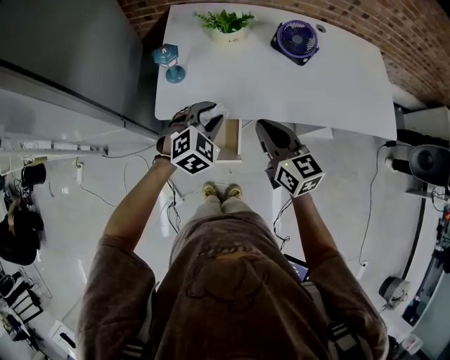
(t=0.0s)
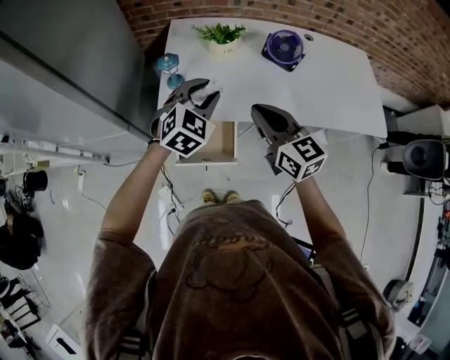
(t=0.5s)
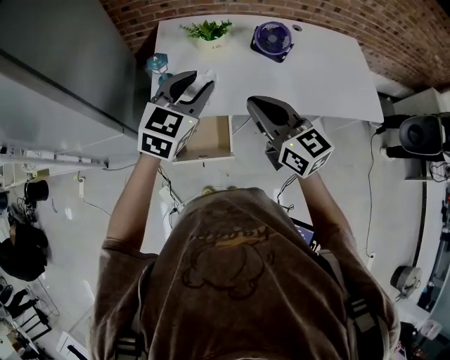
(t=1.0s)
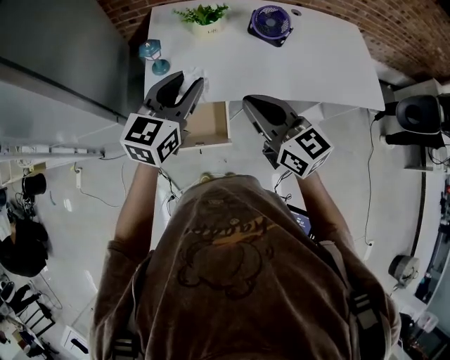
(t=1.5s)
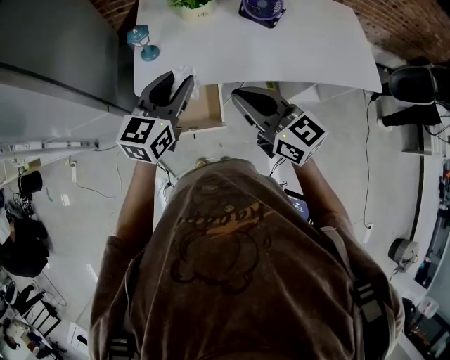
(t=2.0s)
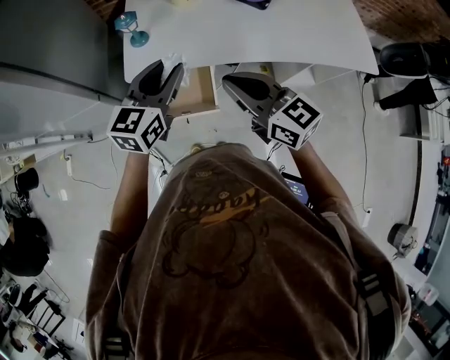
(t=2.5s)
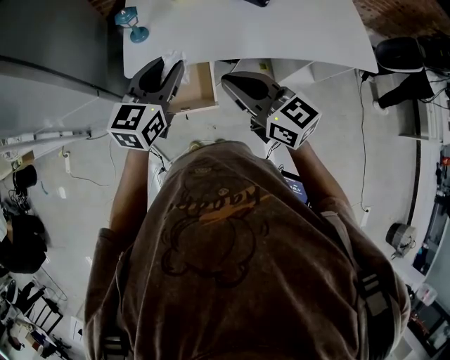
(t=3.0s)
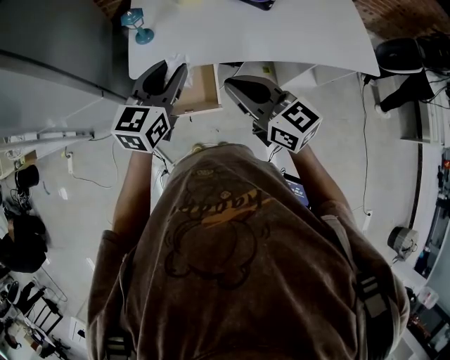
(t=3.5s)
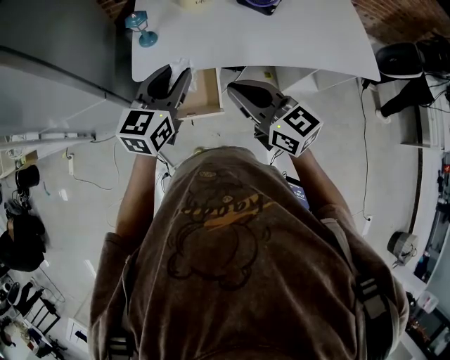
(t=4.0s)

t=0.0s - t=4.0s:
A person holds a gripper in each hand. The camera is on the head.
t=0.0s - t=2.0s: Both grippers move upward and backward, some 15 cm. The left gripper points its fingers approximately 30 degrees further upward.
t=2.0s - t=4.0s: The grippers make only small movements.

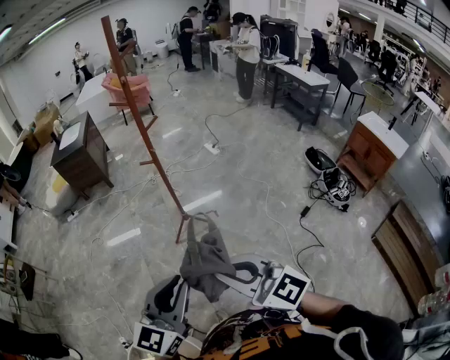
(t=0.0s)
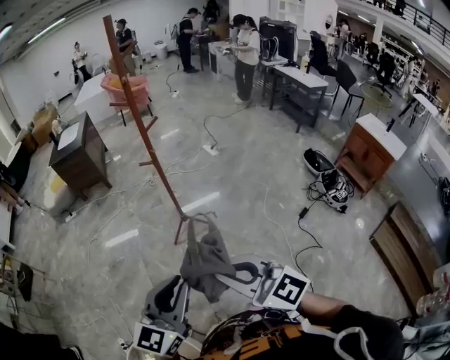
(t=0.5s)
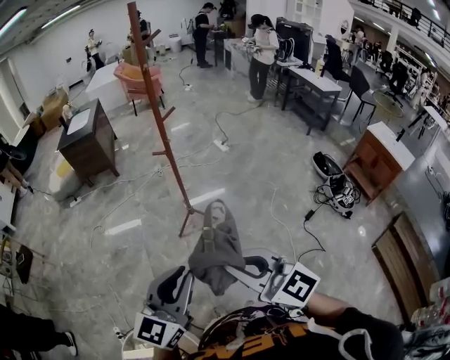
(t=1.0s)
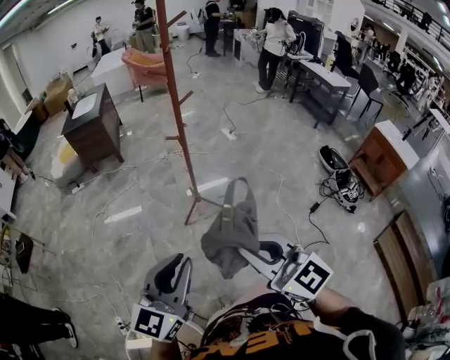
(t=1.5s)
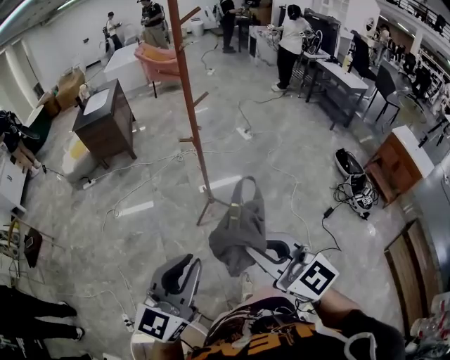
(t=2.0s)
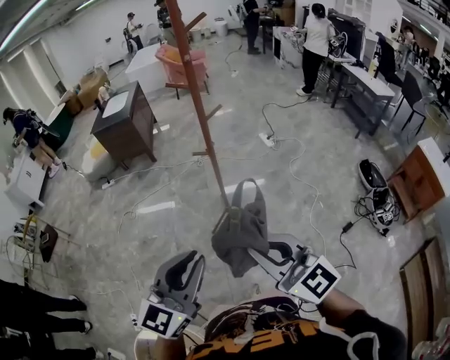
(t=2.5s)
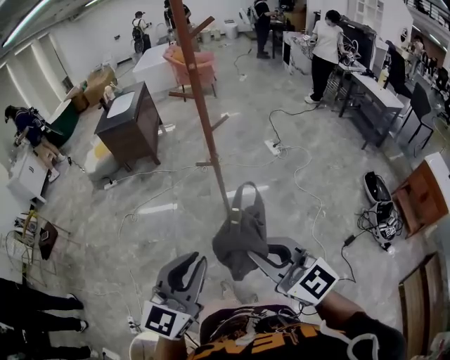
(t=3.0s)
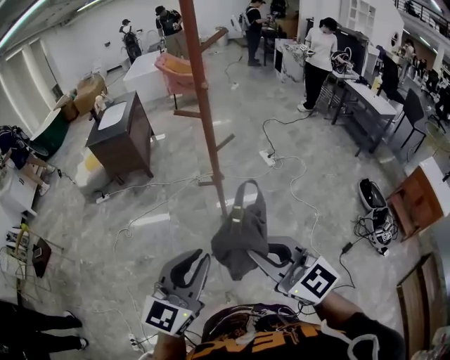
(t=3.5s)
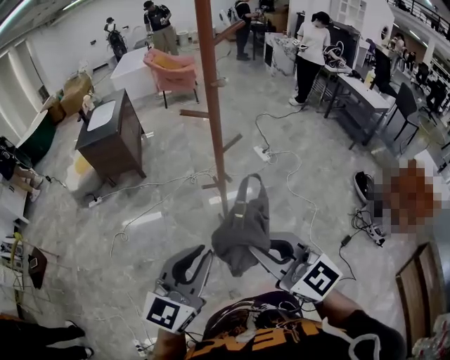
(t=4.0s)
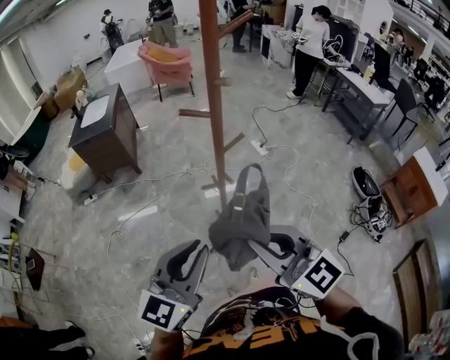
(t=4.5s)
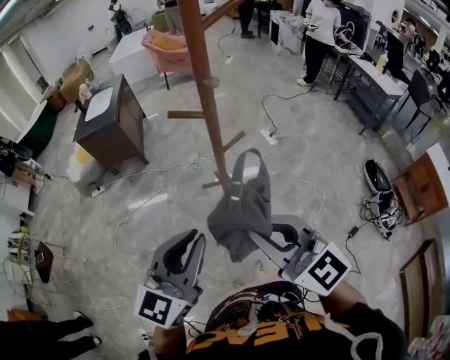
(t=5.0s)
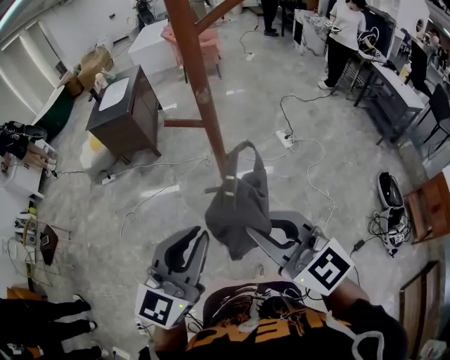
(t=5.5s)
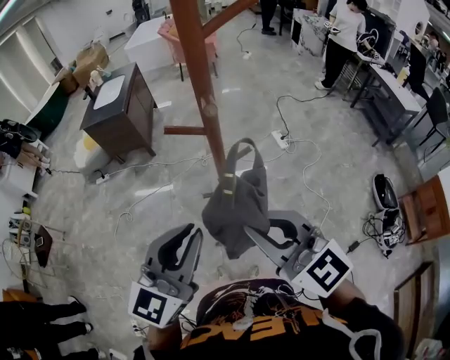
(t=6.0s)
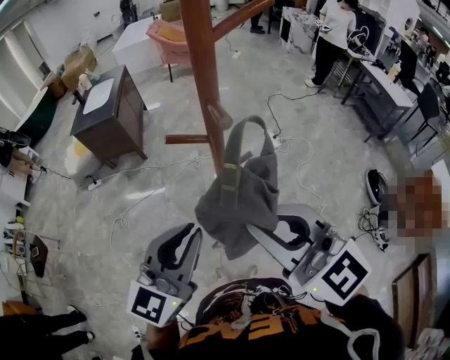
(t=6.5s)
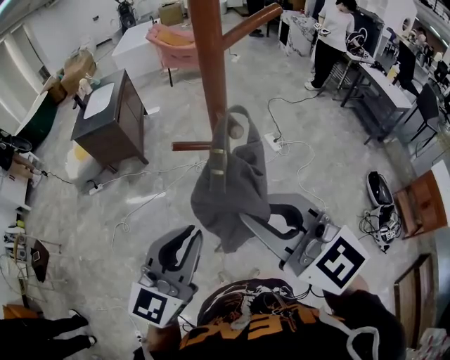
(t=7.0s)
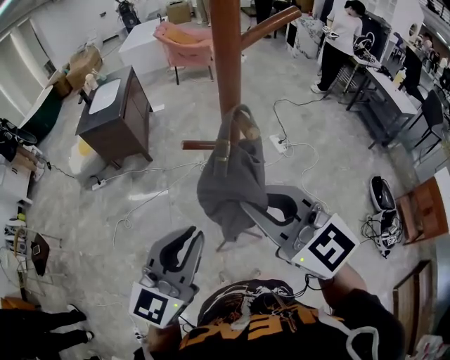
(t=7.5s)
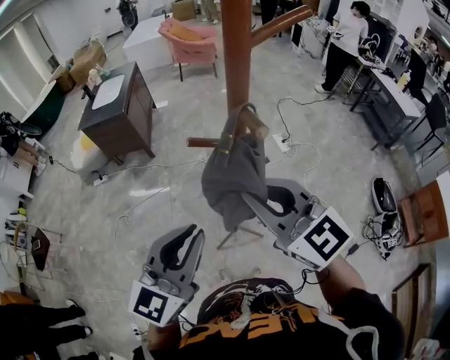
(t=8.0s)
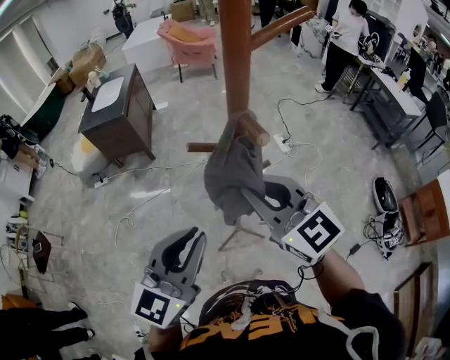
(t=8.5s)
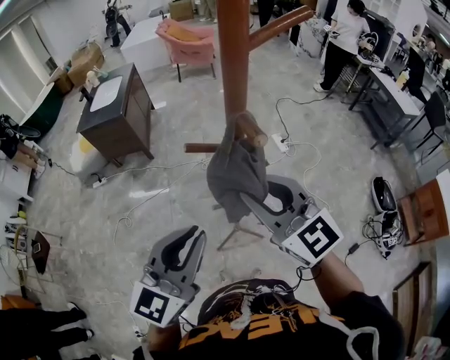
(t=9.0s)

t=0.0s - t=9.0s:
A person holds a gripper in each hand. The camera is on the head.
t=0.0s - t=2.0s: The left gripper shifts about 10 cm to the left and forward. The right gripper shifts roughly 10 cm forward and to the left.
t=2.0s - t=4.5s: Both grippers move forward, approximately 35 cm.
t=4.5s - t=7.0s: The right gripper is displaced forward and upward by some 20 cm. The left gripper goes about 15 cm forward.
t=7.0s - t=9.0s: The right gripper is displaced forward and downward by roughly 10 cm.

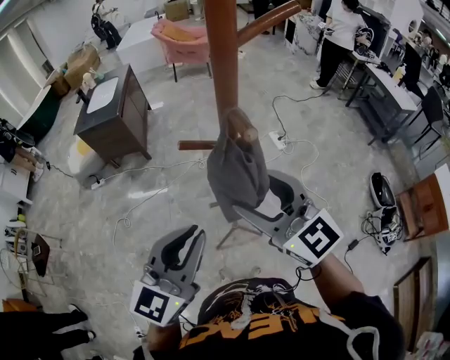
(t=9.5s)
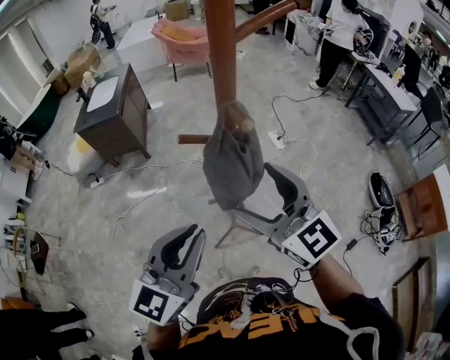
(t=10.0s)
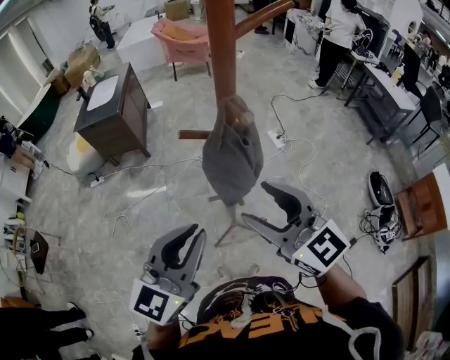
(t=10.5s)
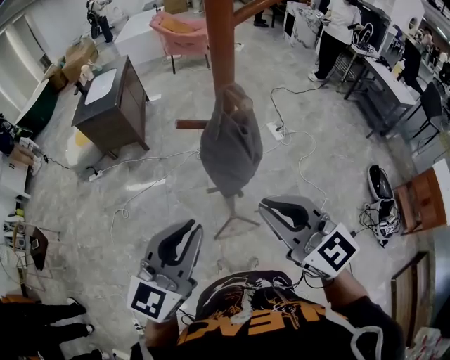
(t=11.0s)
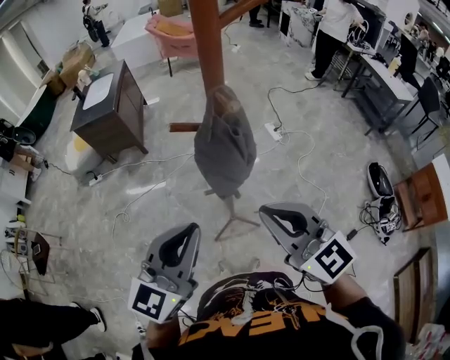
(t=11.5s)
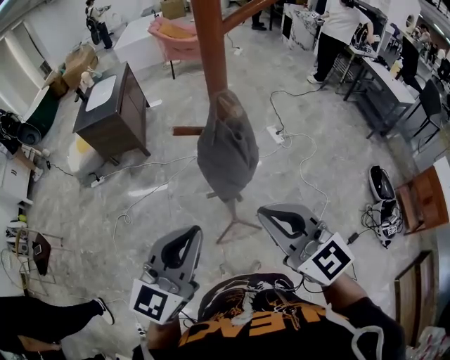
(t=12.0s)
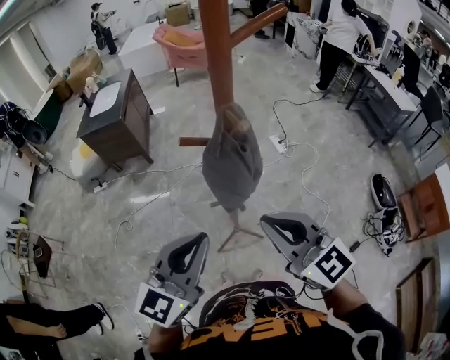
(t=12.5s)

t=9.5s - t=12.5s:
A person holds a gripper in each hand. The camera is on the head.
t=9.5s - t=11.0s: The right gripper moves backward, about 5 cm, and closes up.
t=11.0s - t=12.5s: Neither gripper changes place.

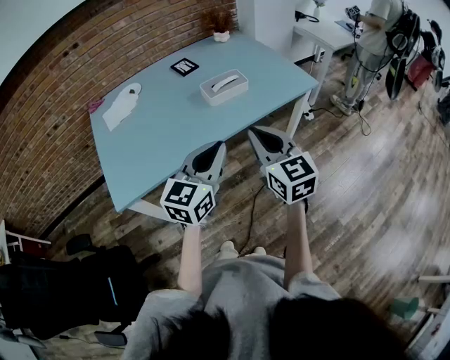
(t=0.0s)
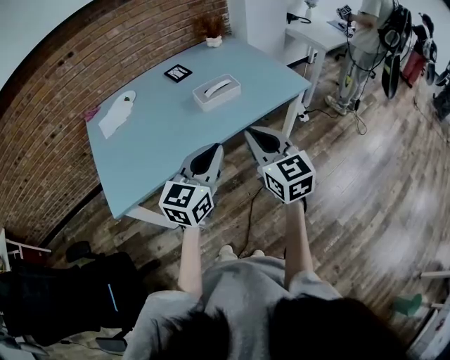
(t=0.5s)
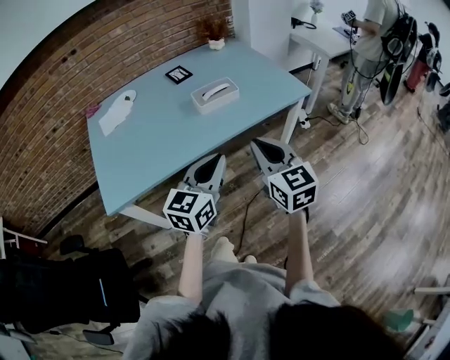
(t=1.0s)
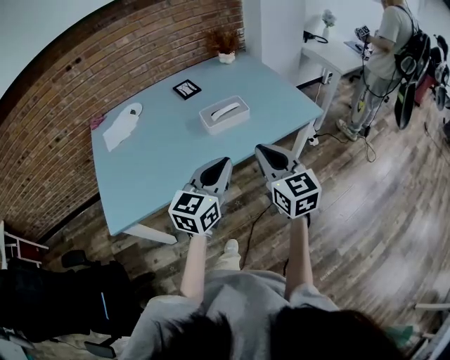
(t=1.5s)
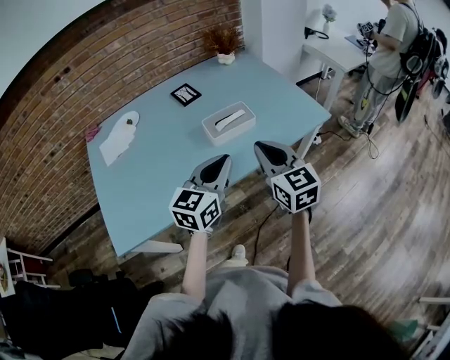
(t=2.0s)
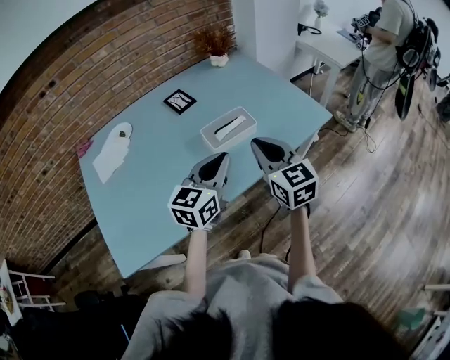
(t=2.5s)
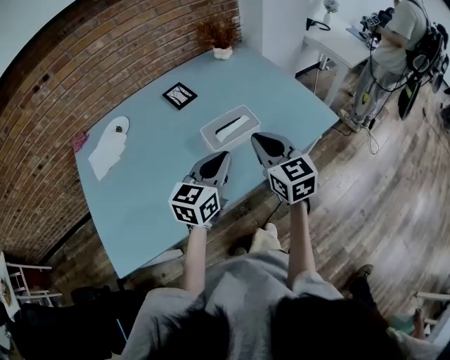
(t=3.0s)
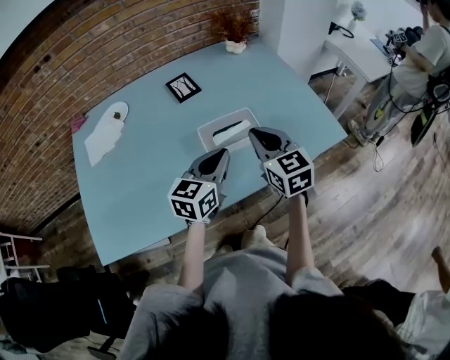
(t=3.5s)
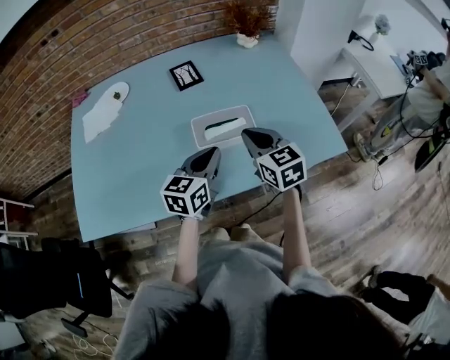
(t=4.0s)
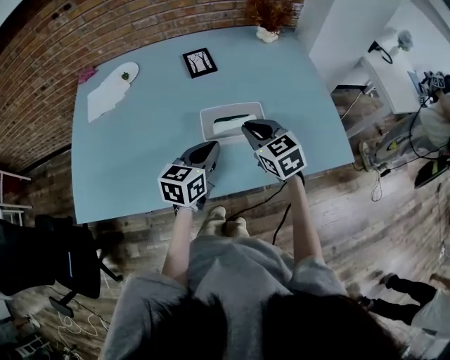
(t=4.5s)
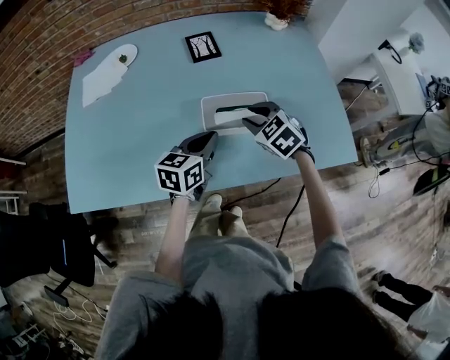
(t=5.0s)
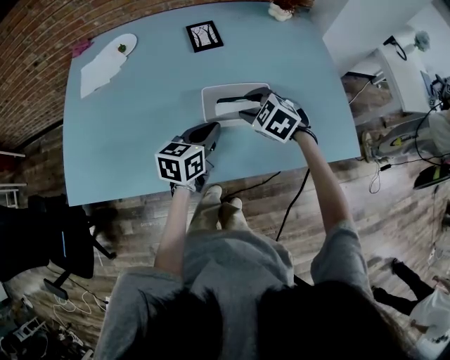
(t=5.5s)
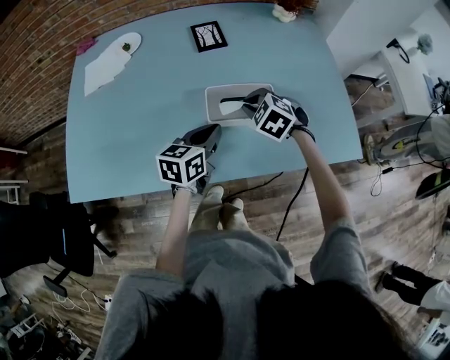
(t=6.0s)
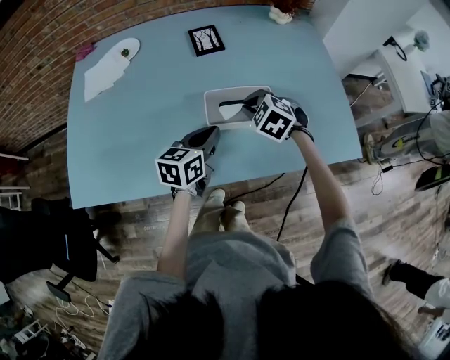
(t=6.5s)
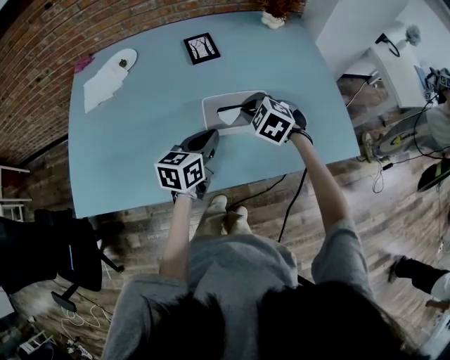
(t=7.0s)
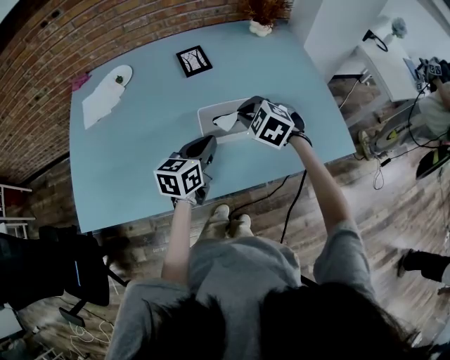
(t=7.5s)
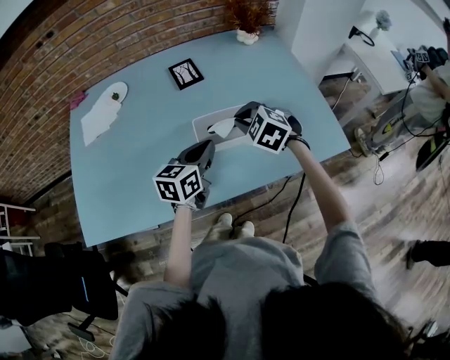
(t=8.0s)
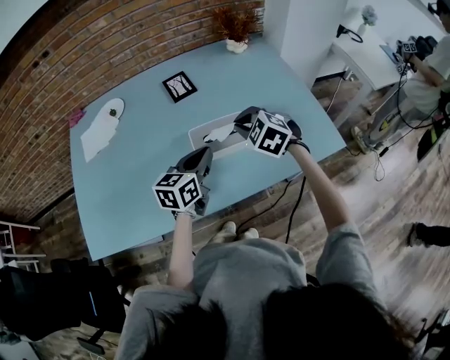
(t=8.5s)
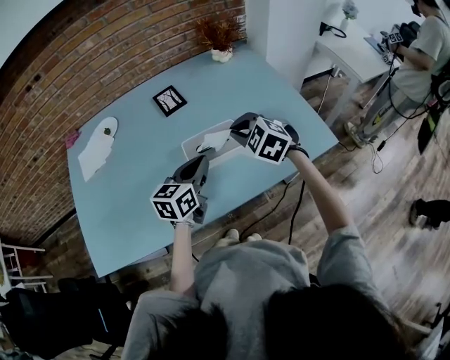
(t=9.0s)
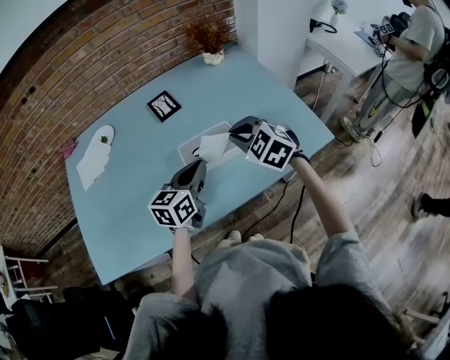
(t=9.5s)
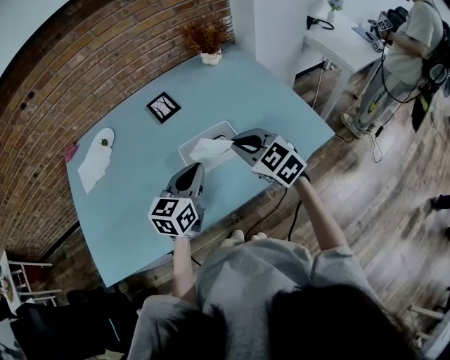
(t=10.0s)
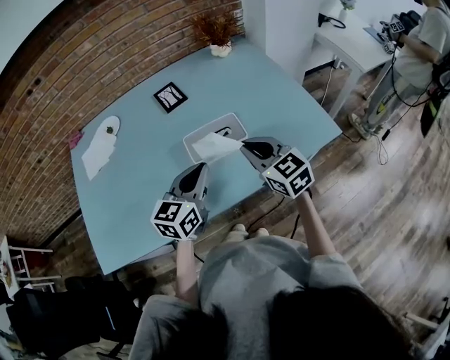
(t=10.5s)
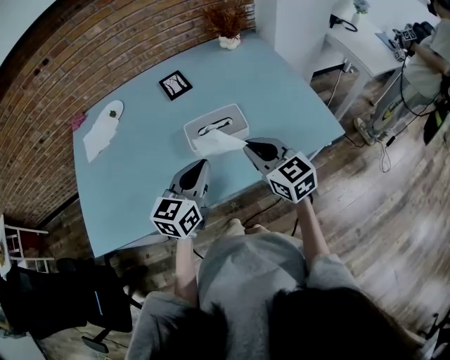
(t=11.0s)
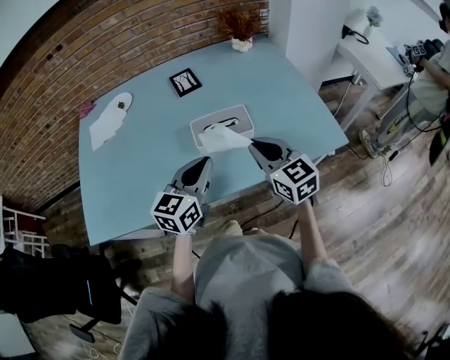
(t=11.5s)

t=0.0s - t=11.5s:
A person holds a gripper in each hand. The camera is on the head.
t=0.0s - t=2.0s: Both grippers move forward, some 20 cm.
t=2.0s - t=4.0s: Both grippers move forward and downward, approximately 20 cm. The left gripper swivels approximately 20 degrees. Meanwhile the right gripper turns by roughly 20 degrees.
t=4.0s - t=6.0s: The right gripper is displaced downward and forward by some 15 cm, tips its fingers downward by about 30 degrees, and opens and closes again; the left gripper is displaced downward by approximately 5 cm.
t=6.0s - t=7.5s: The right gripper is displaced upward by about 5 cm.
t=7.5s - t=9.5s: The left gripper shifts by approximately 5 cm. Meanwhile the right gripper heads upward and to the right, covering approximately 10 cm.
t=9.5s - t=11.5s: Both grippers travel together backward, roughly 10 cm. The right gripper changes its angle by approximately 40 degrees.
